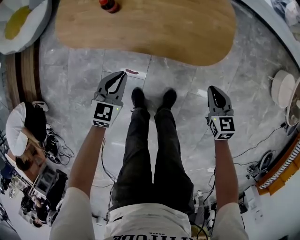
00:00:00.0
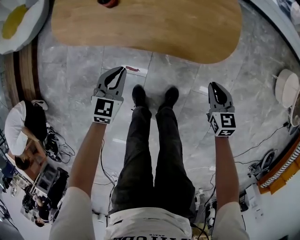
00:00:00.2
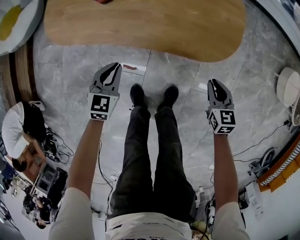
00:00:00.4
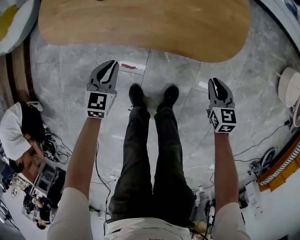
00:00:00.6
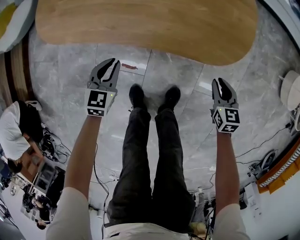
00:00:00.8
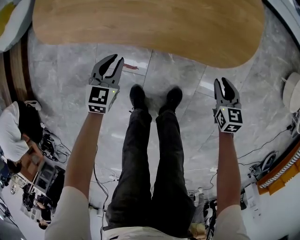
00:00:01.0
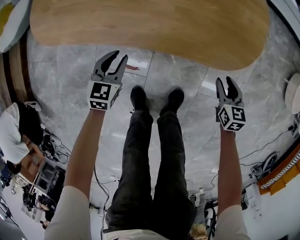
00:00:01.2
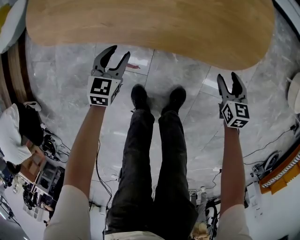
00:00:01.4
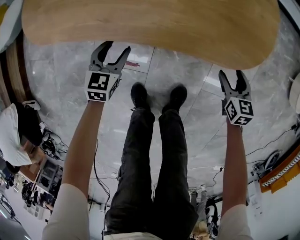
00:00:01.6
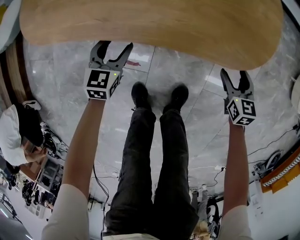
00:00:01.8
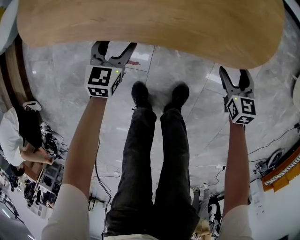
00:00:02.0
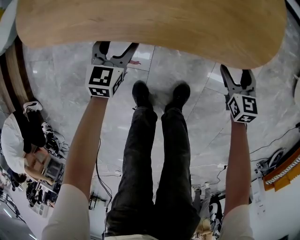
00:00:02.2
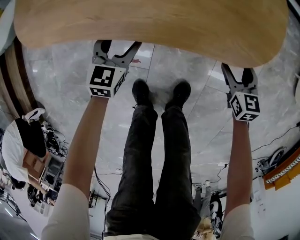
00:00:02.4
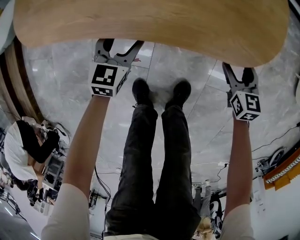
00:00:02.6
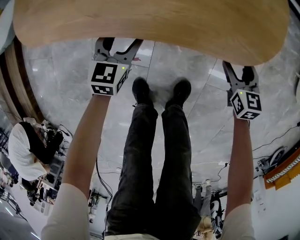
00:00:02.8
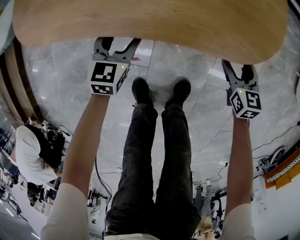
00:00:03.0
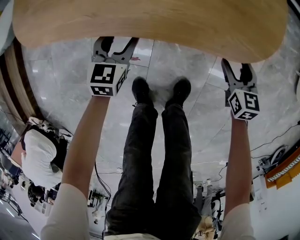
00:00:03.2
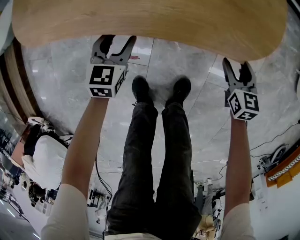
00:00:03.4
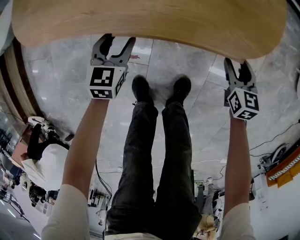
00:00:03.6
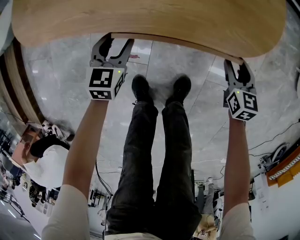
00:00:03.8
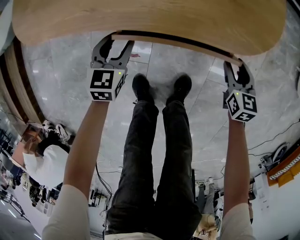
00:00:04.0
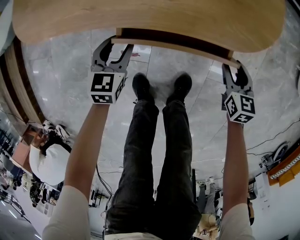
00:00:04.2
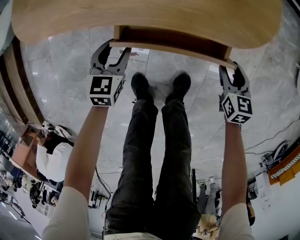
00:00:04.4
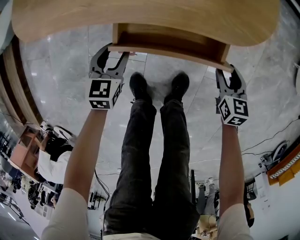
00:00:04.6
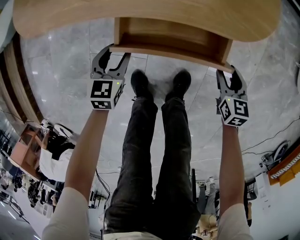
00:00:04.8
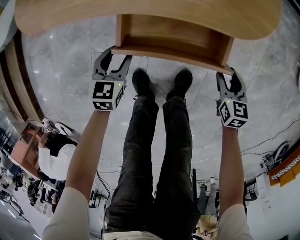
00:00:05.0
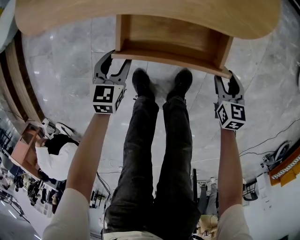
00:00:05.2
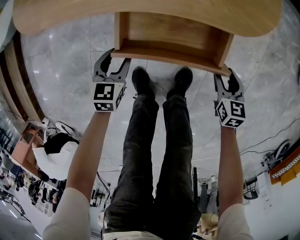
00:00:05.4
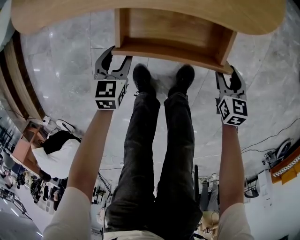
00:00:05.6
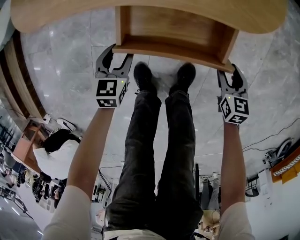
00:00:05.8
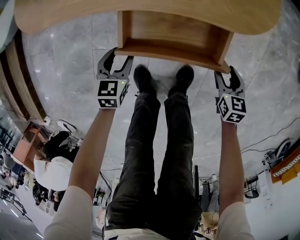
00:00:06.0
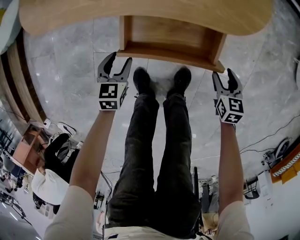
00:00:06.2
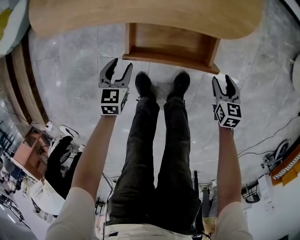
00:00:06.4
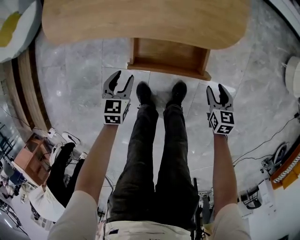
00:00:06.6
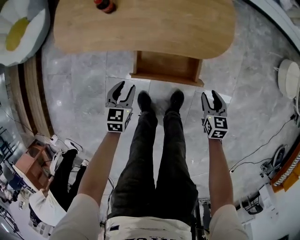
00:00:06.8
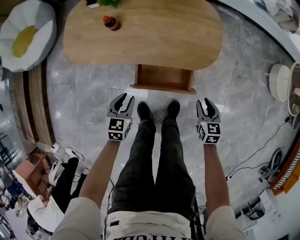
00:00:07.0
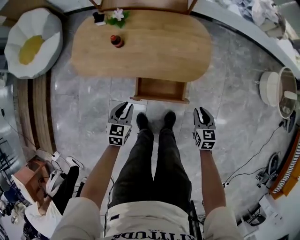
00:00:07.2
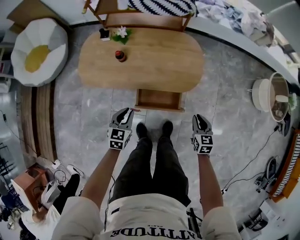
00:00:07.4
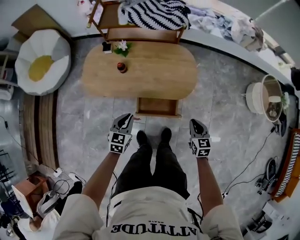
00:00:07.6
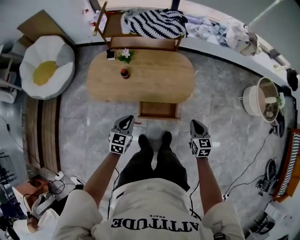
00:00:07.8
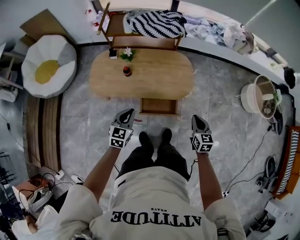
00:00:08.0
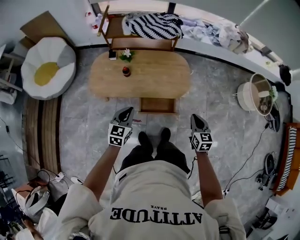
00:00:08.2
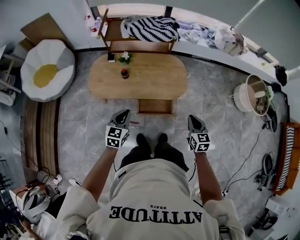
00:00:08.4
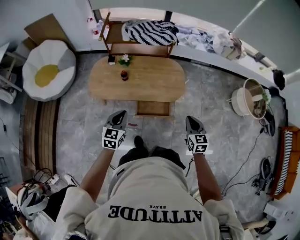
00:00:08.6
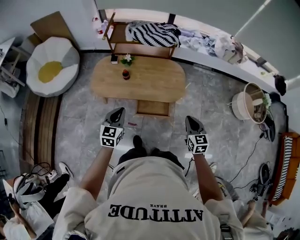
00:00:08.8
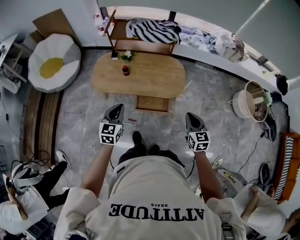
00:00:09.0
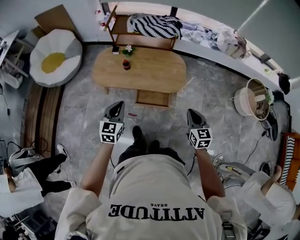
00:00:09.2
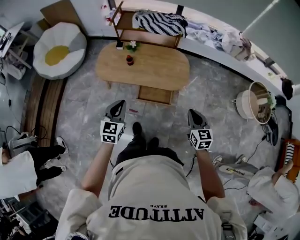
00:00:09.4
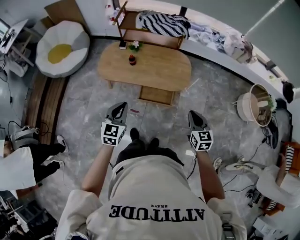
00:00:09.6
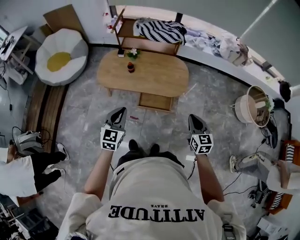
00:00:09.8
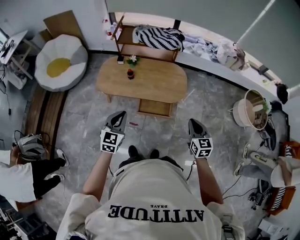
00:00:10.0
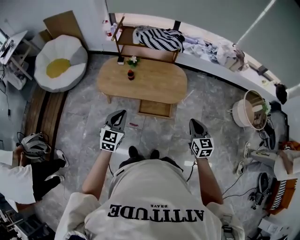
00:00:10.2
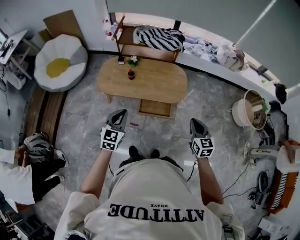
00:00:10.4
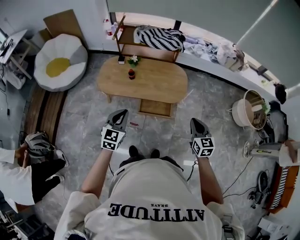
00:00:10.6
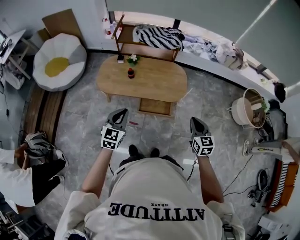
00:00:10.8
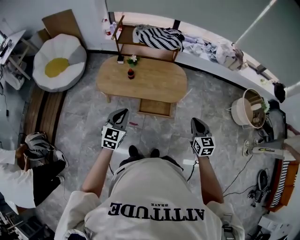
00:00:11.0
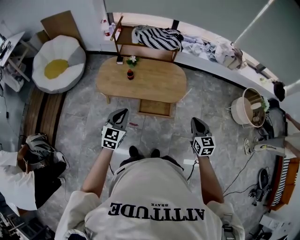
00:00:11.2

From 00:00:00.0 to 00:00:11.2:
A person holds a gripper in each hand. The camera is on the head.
From 00:00:00.0 to 00:00:01.6: Both grippers move downward, approximately 25 cm. The right gripper opens up. The left gripper opens up.
From 00:00:01.6 to 00:00:03.2: There are only small adjustments of the grippers.
From 00:00:03.2 to 00:00:04.8: Both grippers move backward, approximately 10 cm.
From 00:00:04.8 to 00:00:06.4: The left gripper moves approximately 5 cm; the right gripper shifts by roughly 5 cm.
From 00:00:06.4 to 00:00:08.0: The grippers both shift upward by roughly 50 cm. The left gripper changes its angle by approximately 20 degrees, and closes; the right gripper swivels roughly 20 degrees, and closes up.
From 00:00:08.0 to 00:00:09.6: The two grippers go roughly 20 cm backward and upward.
From 00:00:09.6 to 00:00:11.2: The grippers move only a little.

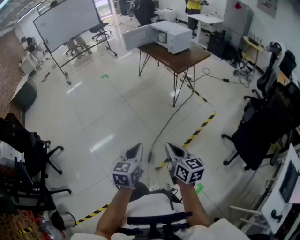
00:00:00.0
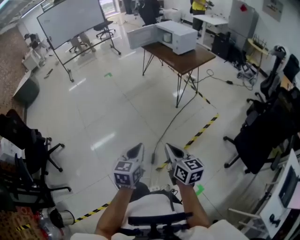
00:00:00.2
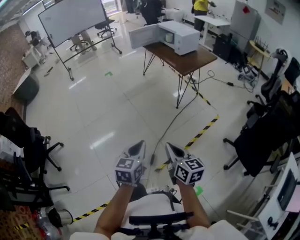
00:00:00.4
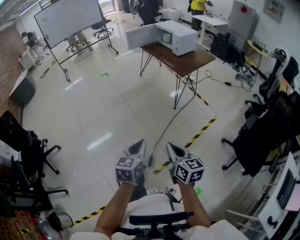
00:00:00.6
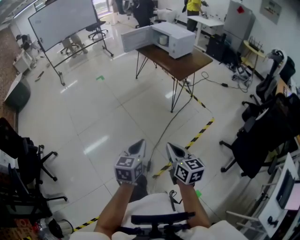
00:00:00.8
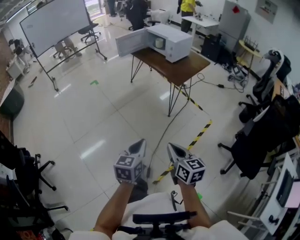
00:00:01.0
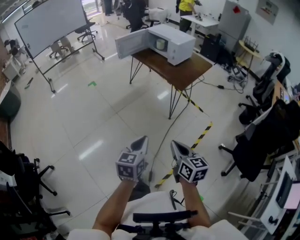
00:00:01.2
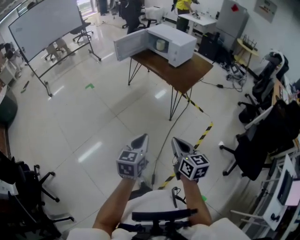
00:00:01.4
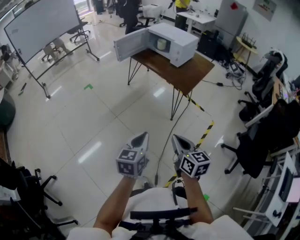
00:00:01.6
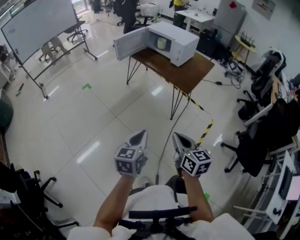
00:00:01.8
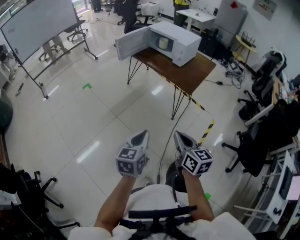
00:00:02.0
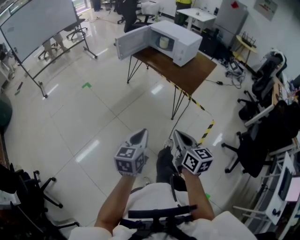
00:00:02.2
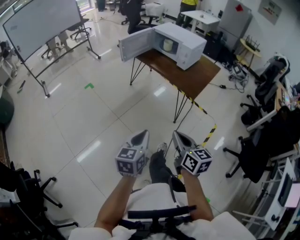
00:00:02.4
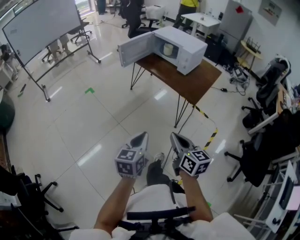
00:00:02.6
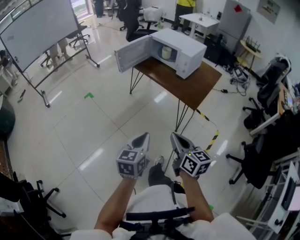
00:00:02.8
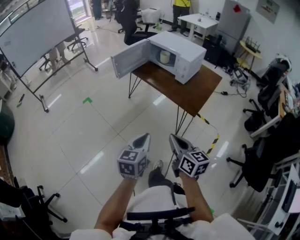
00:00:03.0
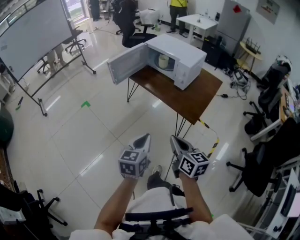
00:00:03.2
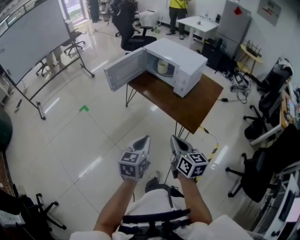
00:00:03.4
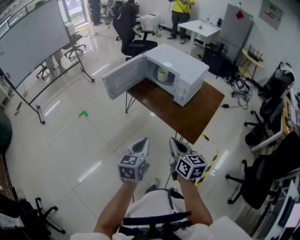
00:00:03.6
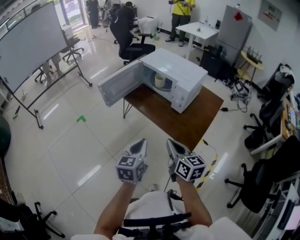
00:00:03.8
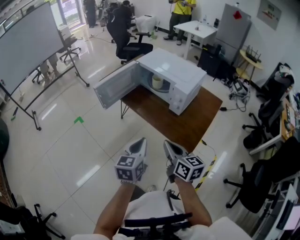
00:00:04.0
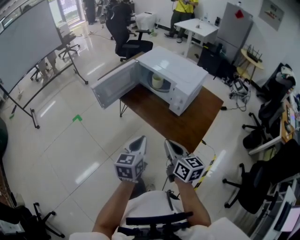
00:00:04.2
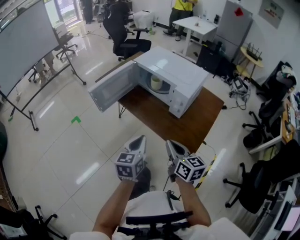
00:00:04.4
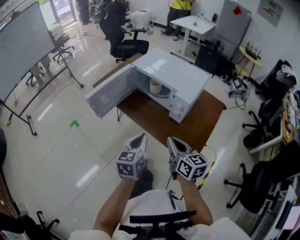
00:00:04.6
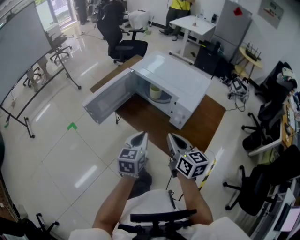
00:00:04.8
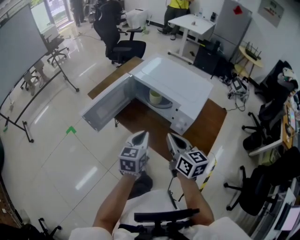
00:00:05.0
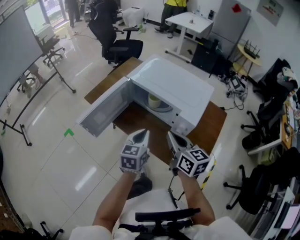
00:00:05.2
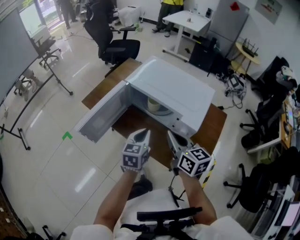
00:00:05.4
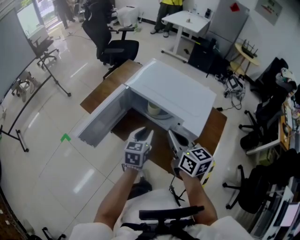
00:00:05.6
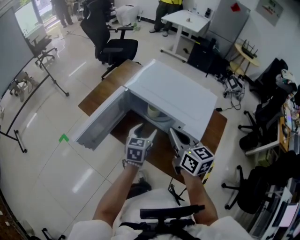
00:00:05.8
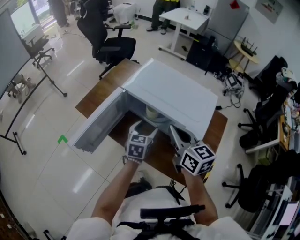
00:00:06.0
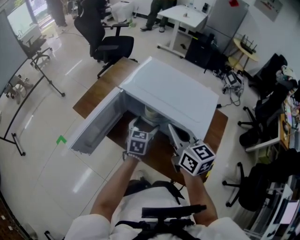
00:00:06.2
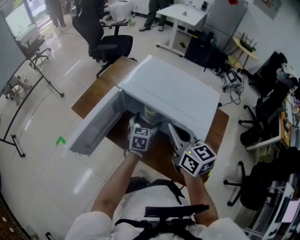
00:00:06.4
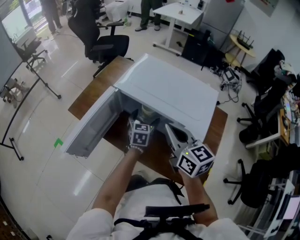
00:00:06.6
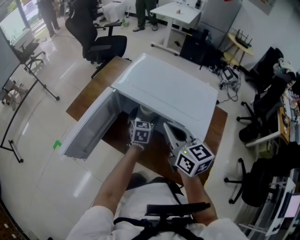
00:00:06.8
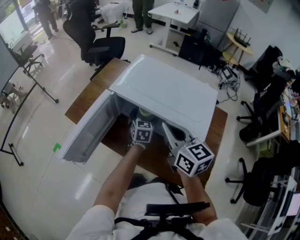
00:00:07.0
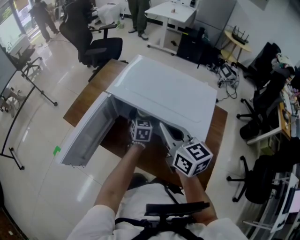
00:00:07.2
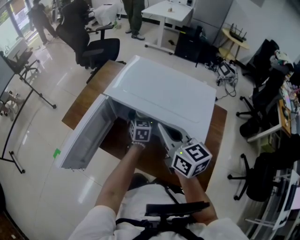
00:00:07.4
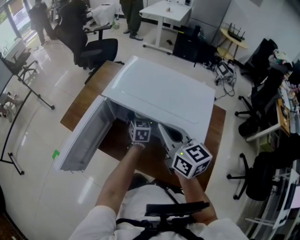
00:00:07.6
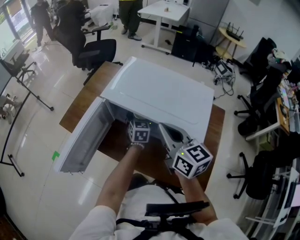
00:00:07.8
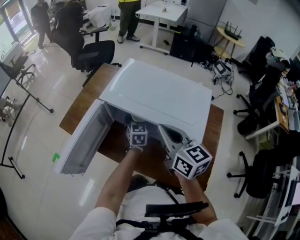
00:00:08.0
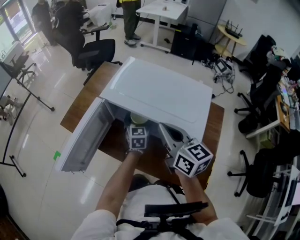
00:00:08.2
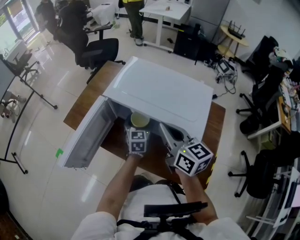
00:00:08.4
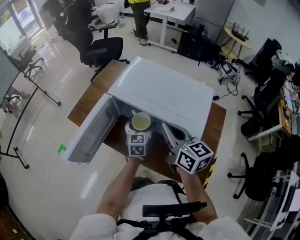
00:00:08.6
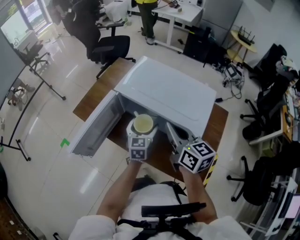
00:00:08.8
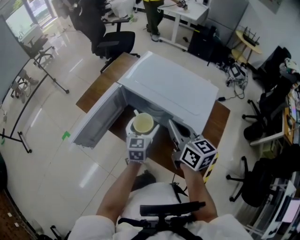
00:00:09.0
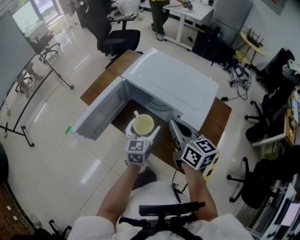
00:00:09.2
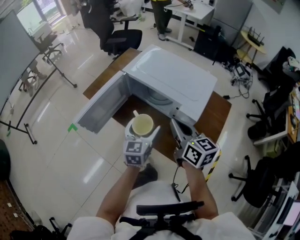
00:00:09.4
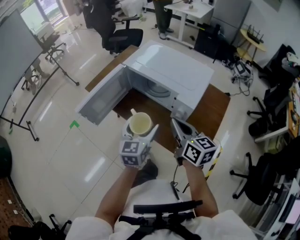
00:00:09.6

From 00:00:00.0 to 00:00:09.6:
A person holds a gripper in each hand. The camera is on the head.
From 00:00:00.0 to 00:00:01.6: The two grippers go roughly 35 cm forward.
From 00:00:01.6 to 00:00:03.2: Both grippers travel together forward, some 25 cm.
From 00:00:03.2 to 00:00:04.8: Both grippers move forward, roughly 35 cm.
From 00:00:04.8 to 00:00:06.4: The right gripper heads forward, covering approximately 20 cm, while the left gripper heads forward and downward, covering roughly 30 cm, and opens its fingers.
From 00:00:06.4 to 00:00:08.0: The left gripper goes about 10 cm forward.
From 00:00:08.0 to 00:00:09.6: The right gripper shifts roughly 15 cm backward, while the left gripper travels backward and upward by some 35 cm.

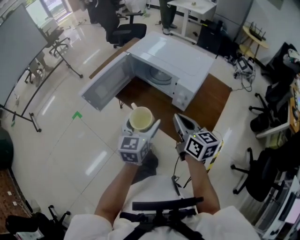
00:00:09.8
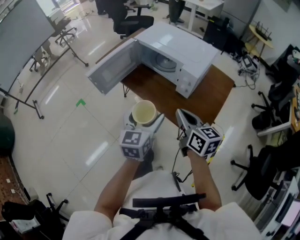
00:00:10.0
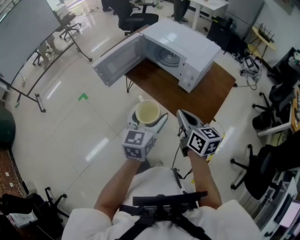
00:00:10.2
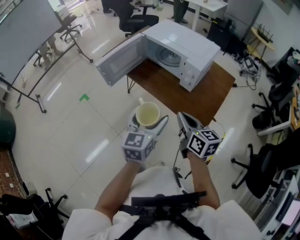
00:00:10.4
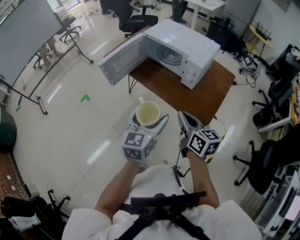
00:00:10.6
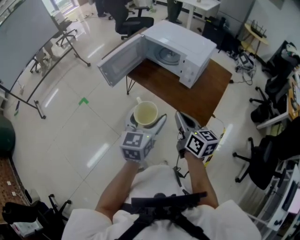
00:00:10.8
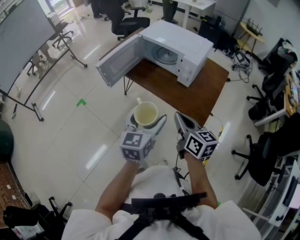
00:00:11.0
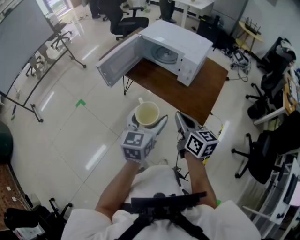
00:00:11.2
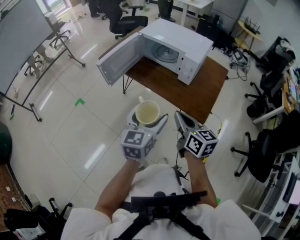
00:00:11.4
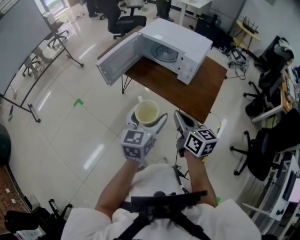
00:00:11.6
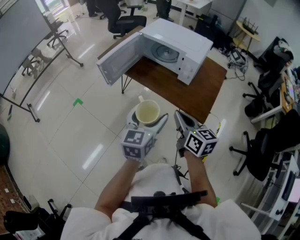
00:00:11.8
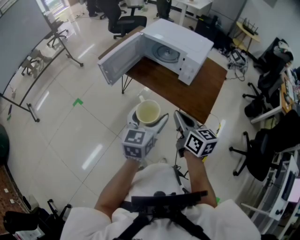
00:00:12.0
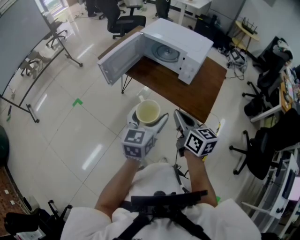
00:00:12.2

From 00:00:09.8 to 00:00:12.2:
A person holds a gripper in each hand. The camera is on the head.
From 00:00:09.8 to 00:00:11.0: The left gripper is displaced backward by some 15 cm. The right gripper is displaced backward and to the left by about 20 cm.
From 00:00:11.0 to 00:00:12.2: The grippers stay close to where they were, moving slightly.
